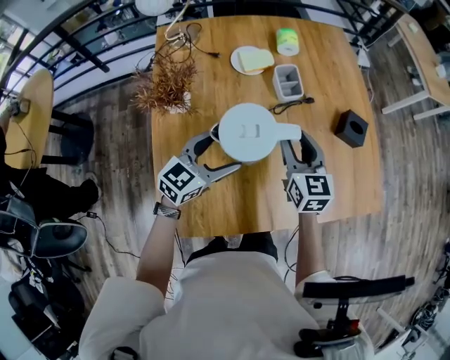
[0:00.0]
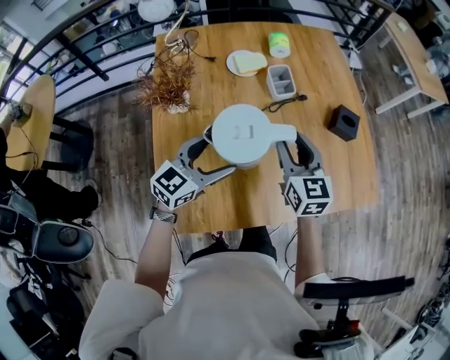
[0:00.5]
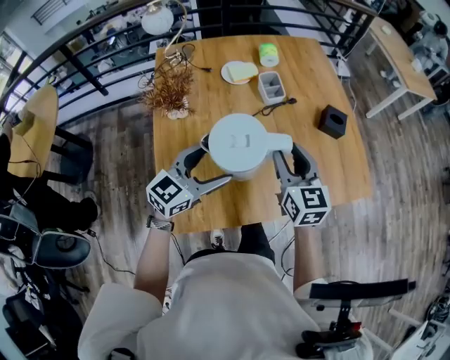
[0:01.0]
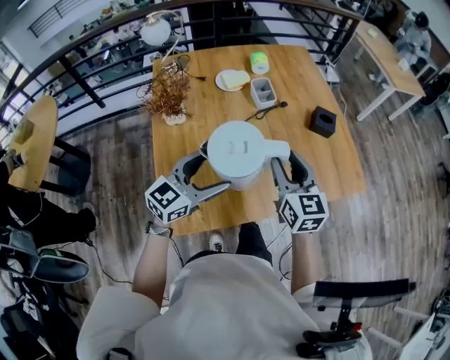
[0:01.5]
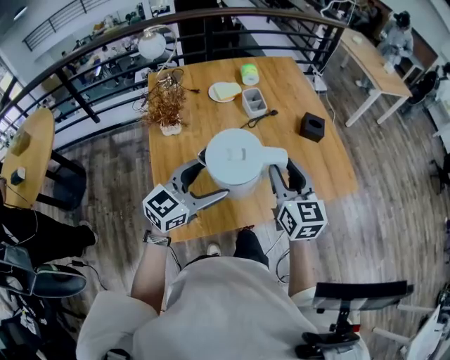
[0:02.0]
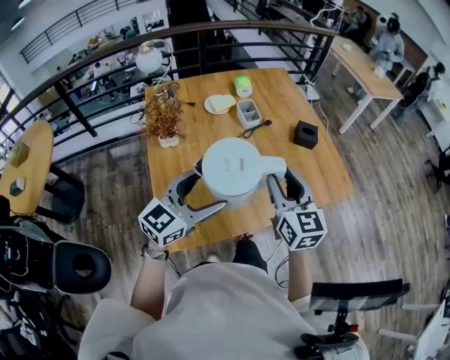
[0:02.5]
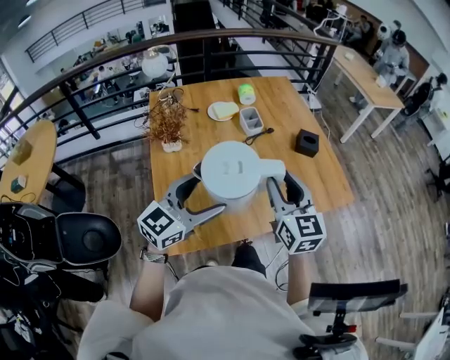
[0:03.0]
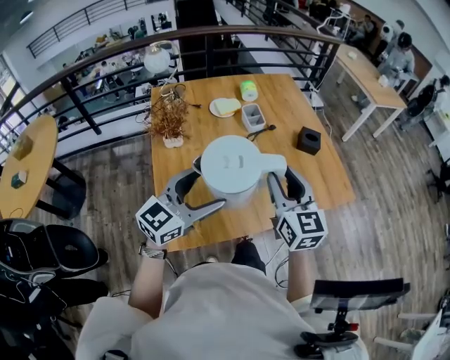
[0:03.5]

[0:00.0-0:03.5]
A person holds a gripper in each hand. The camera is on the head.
0:00.0 to 0:02.0: Both grippers move backward and upward, roughly 20 cm.
0:02.0 to 0:03.5: The left gripper moves some 5 cm; the right gripper changes place by some 5 cm.

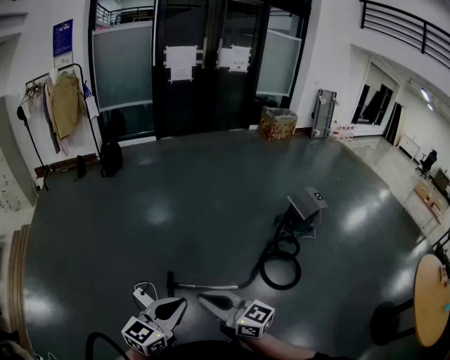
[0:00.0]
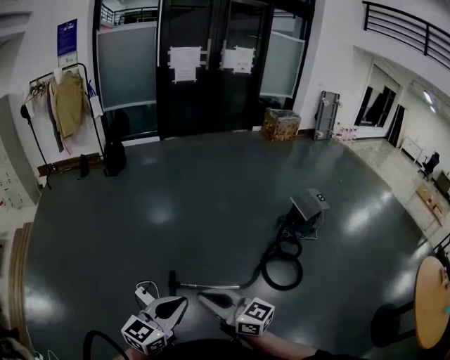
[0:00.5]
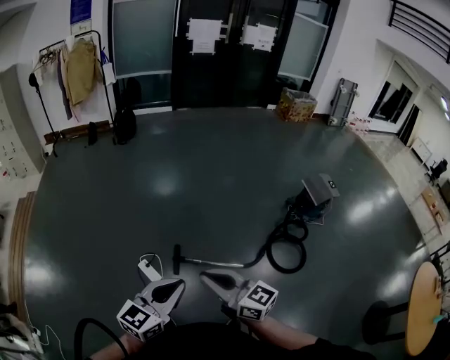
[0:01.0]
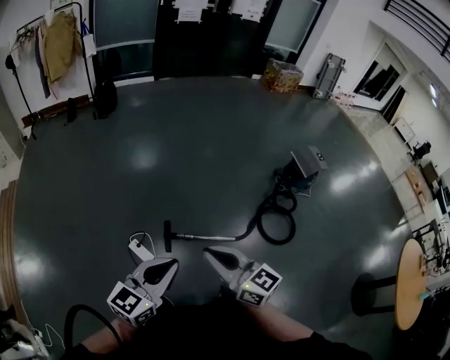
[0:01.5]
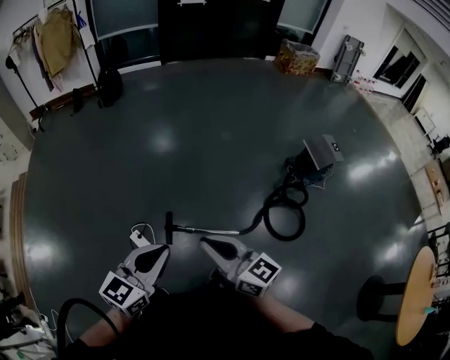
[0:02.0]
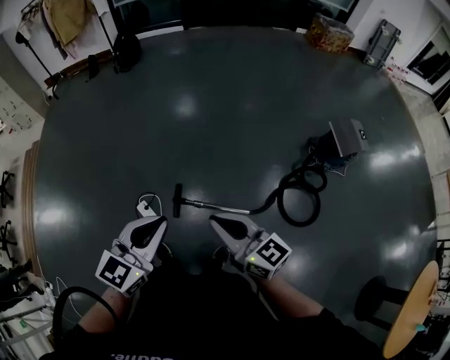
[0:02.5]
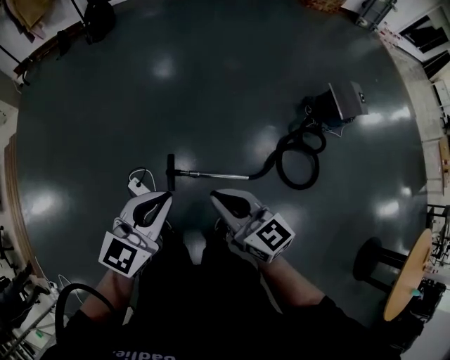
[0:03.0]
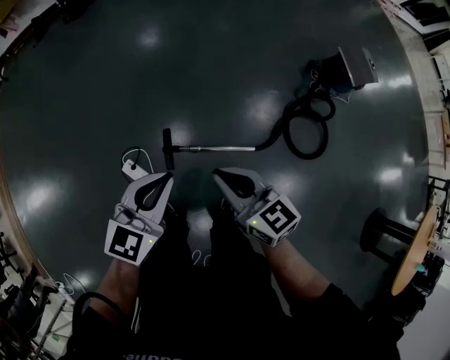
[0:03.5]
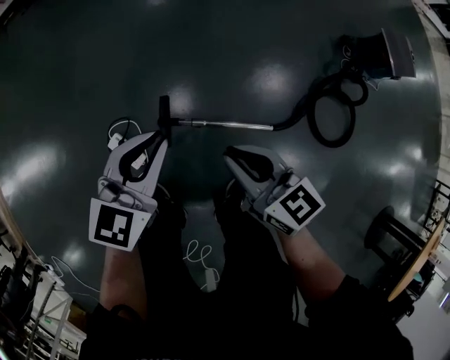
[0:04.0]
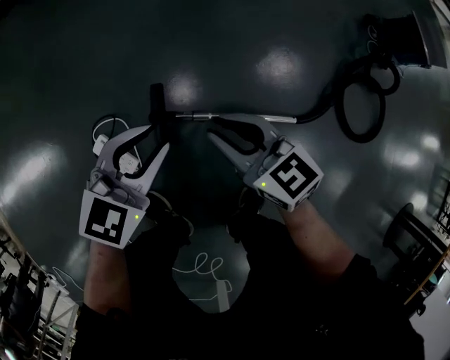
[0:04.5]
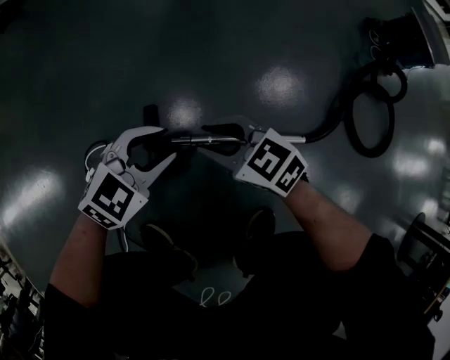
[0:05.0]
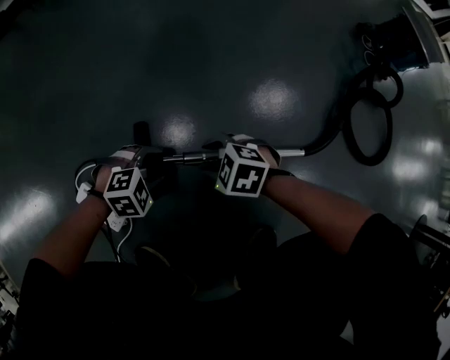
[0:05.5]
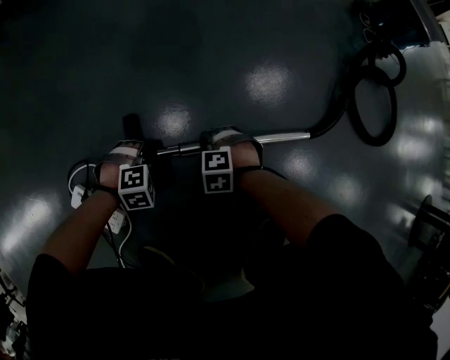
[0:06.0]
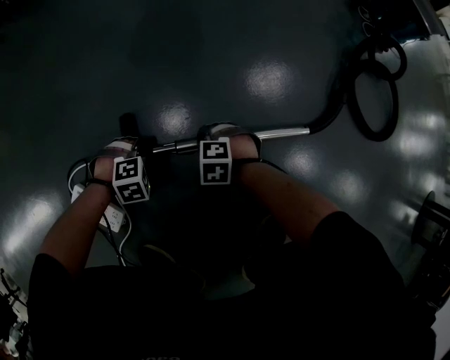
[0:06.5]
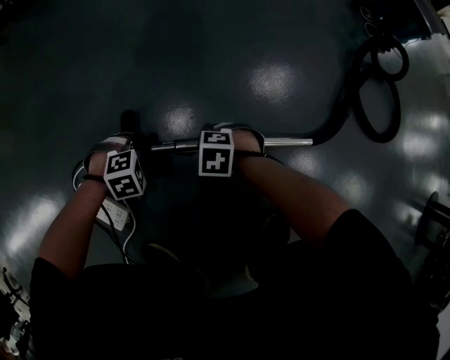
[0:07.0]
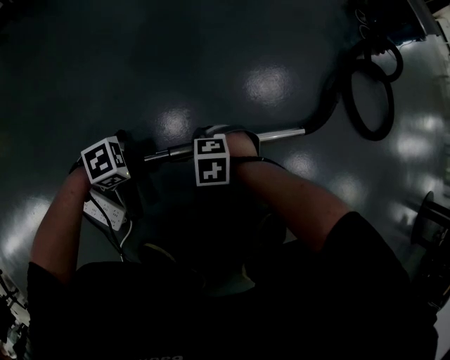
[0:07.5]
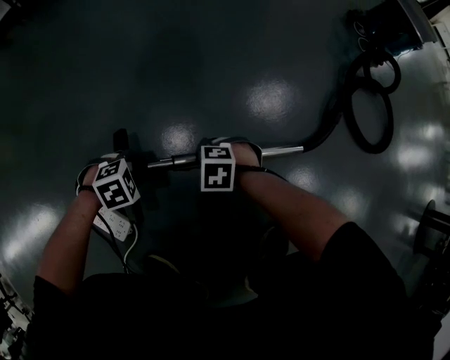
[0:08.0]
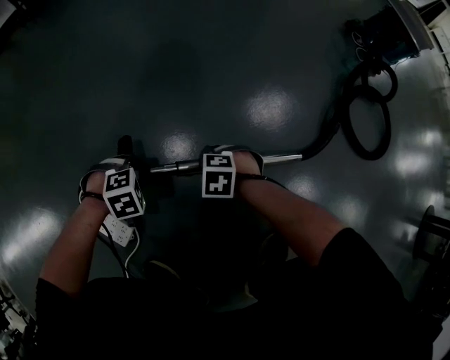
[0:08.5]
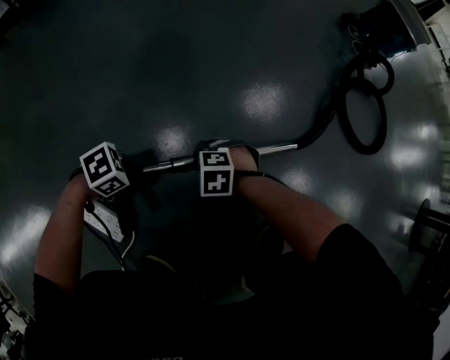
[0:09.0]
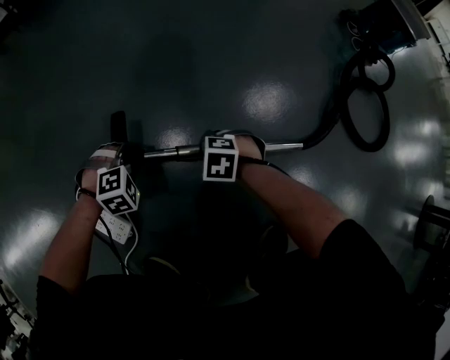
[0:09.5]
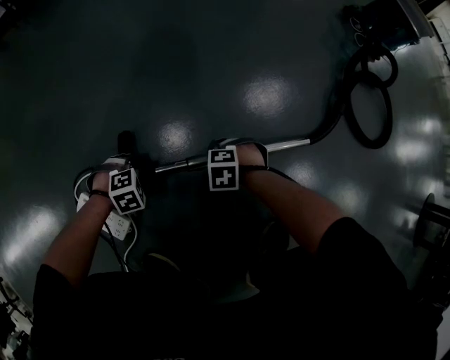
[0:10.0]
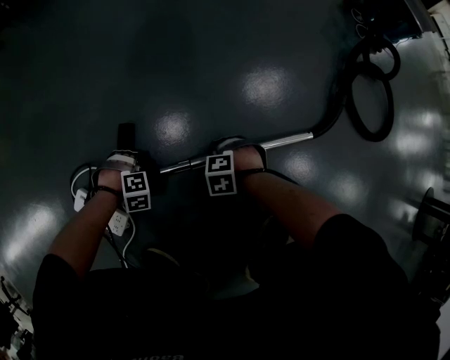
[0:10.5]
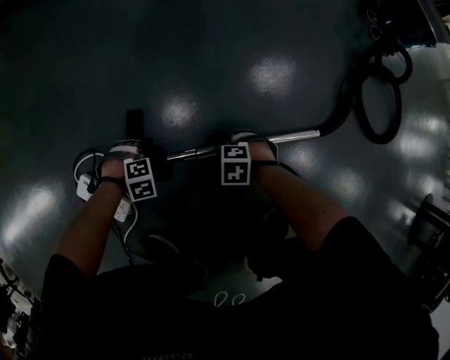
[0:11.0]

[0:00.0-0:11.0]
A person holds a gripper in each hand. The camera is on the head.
0:00.0 to 0:02.0: The two grippers go roughly 10 cm forward.
0:02.0 to 0:03.5: Both grippers move downward and forward, roughly 25 cm.
0:03.5 to 0:05.5: The two grippers go some 70 cm downward. The left gripper points its fingers some 50 degrees further downward, and opens its fingers. The right gripper tips its fingers downward by some 40 degrees, and opens its fingers.
0:05.5 to 0:07.5: The right gripper heads downward, covering some 10 cm; the left gripper changes its angle by roughly 30 degrees.
0:09.0 to 0:11.0: The left gripper is displaced downward by about 10 cm, tilts its fingers roughly 30 degrees downward, and opens up. Meanwhile the right gripper changes place by roughly 10 cm, and opens its fingers.

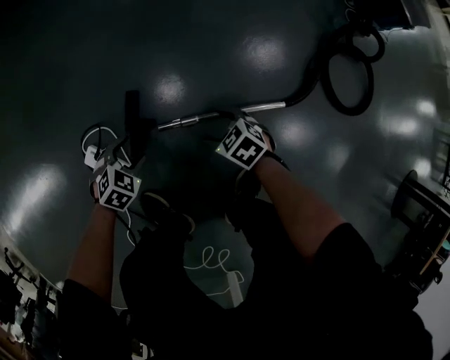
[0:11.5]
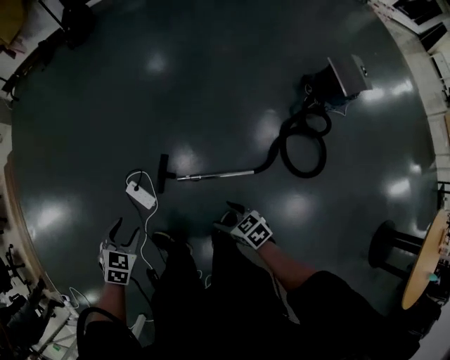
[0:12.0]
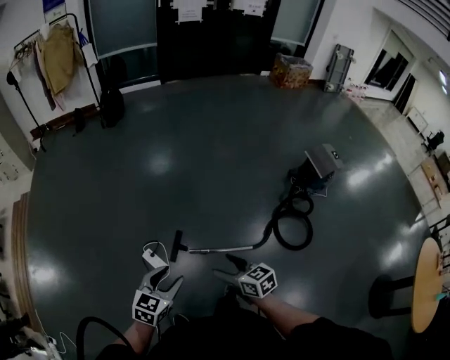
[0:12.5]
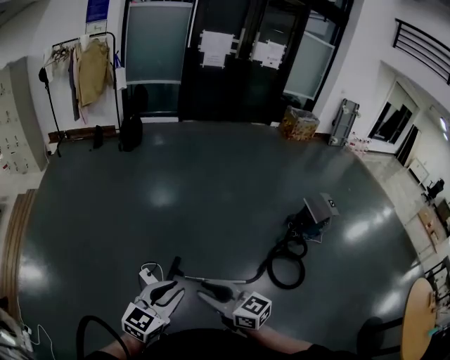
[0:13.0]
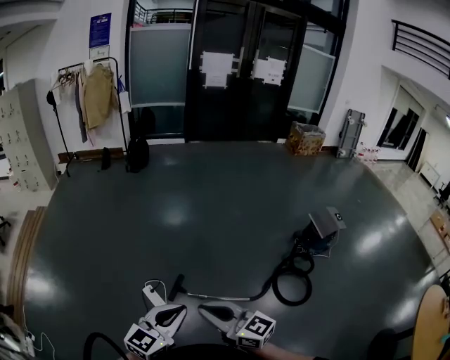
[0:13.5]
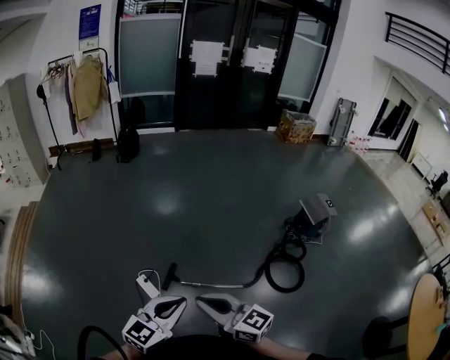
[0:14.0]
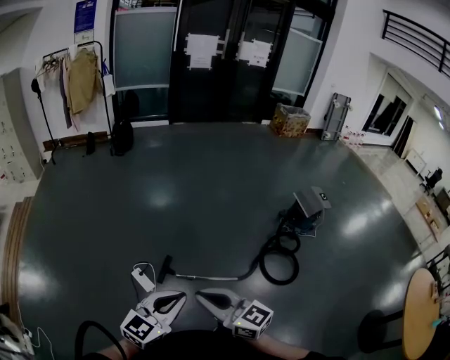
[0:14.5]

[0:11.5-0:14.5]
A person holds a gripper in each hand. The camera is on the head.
0:11.5 to 0:13.0: The two grippers go approximately 80 cm upward. The left gripper points its fingers about 60 degrees further upward, and closes up. Meanwhile the right gripper tips its fingers upward by about 50 degrees, and closes its fingers.
0:13.0 to 0:14.5: The right gripper shifts some 10 cm backward and to the right, and closes; the left gripper goes approximately 10 cm to the right and backward.

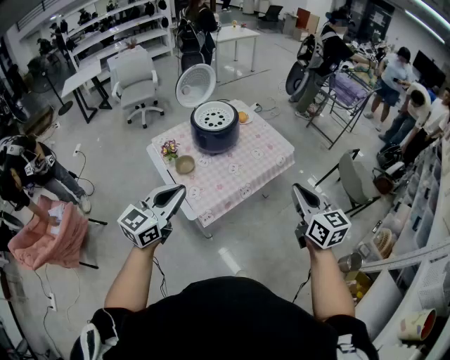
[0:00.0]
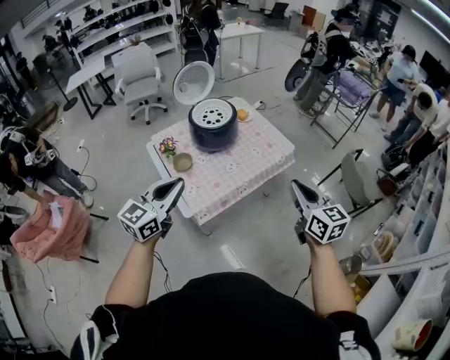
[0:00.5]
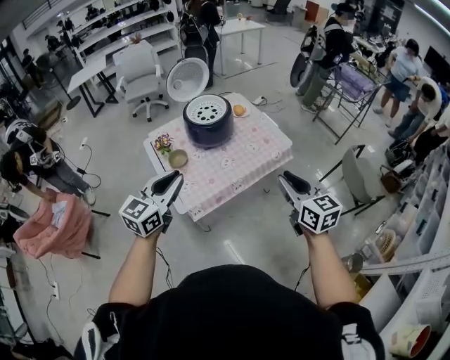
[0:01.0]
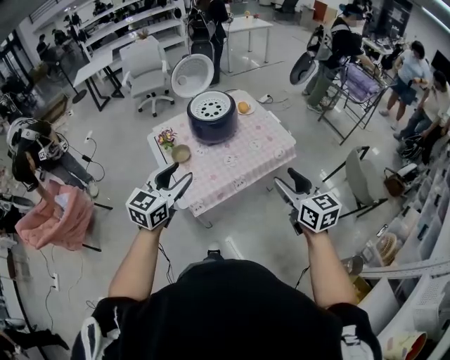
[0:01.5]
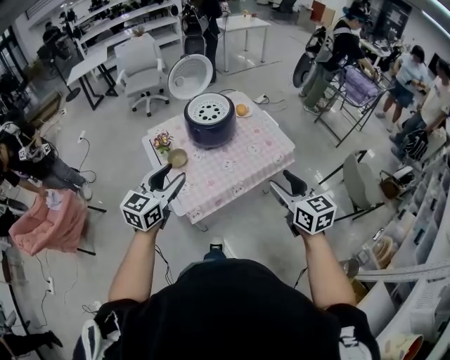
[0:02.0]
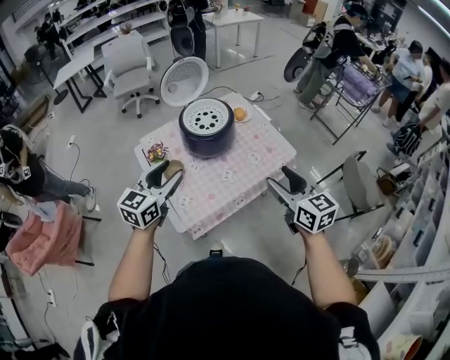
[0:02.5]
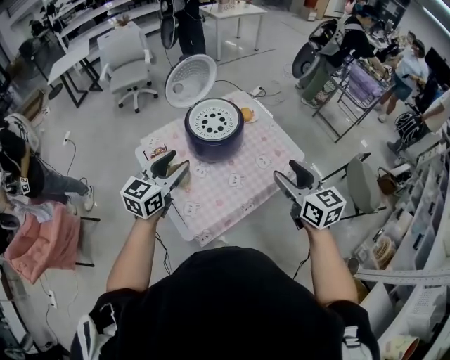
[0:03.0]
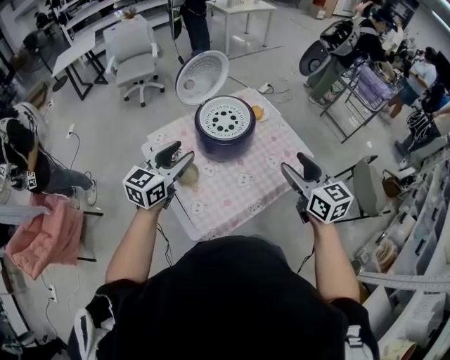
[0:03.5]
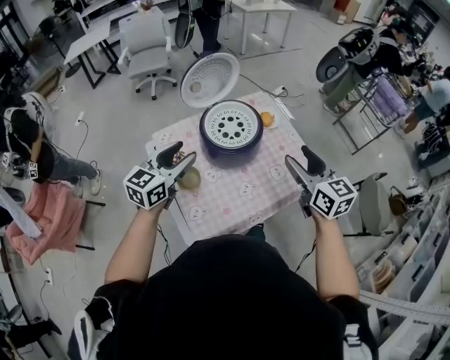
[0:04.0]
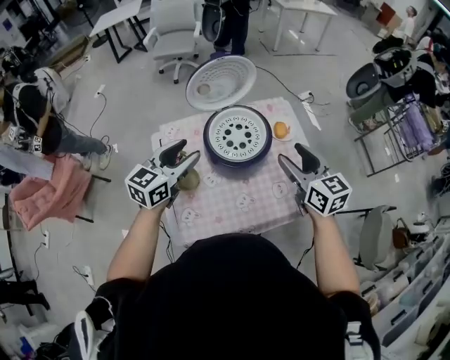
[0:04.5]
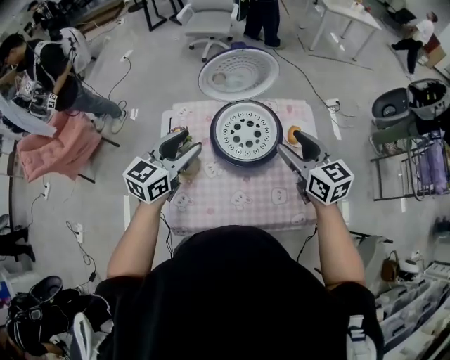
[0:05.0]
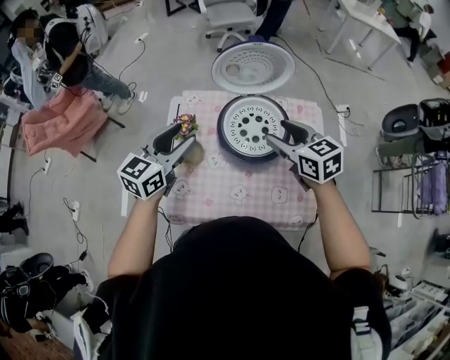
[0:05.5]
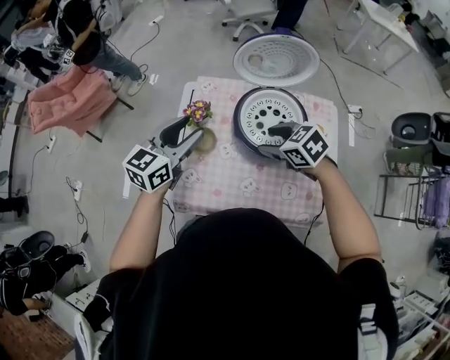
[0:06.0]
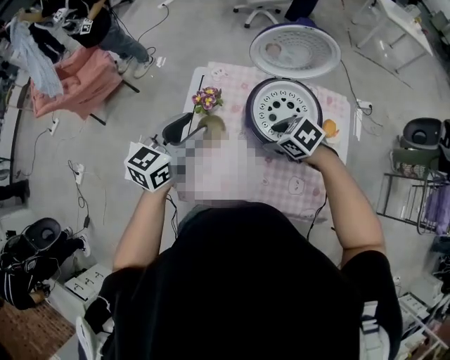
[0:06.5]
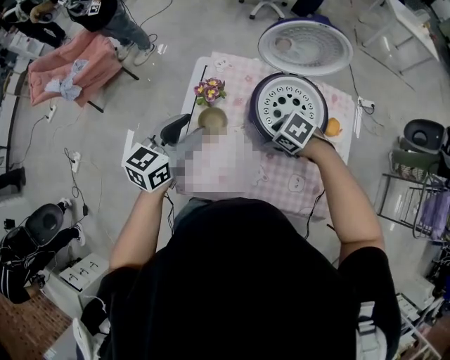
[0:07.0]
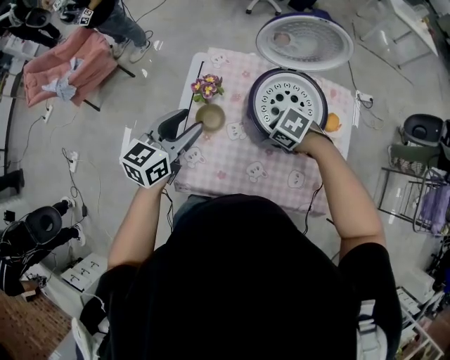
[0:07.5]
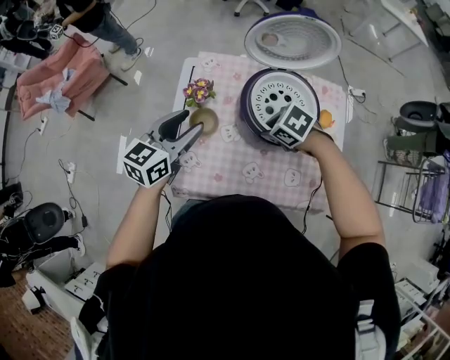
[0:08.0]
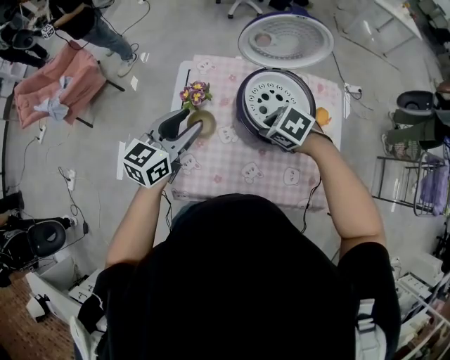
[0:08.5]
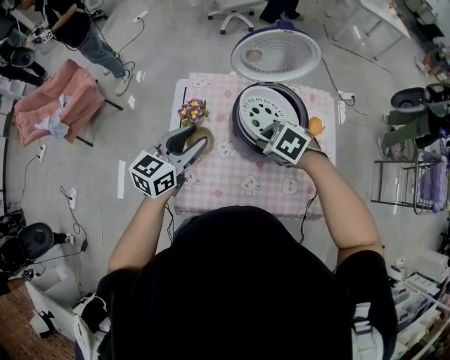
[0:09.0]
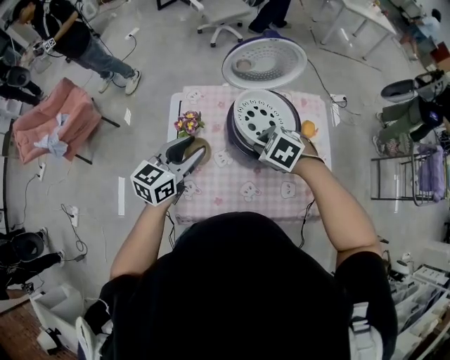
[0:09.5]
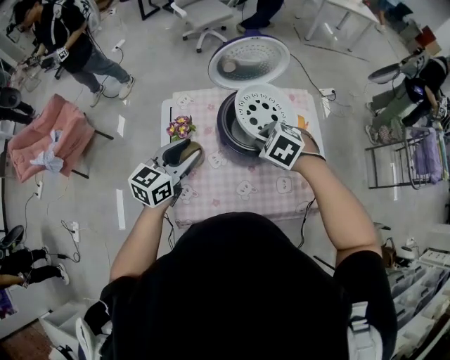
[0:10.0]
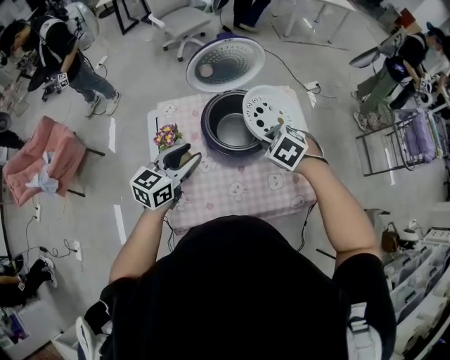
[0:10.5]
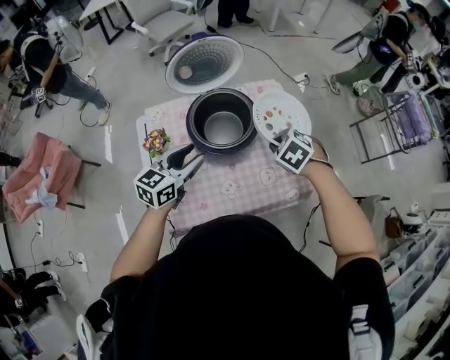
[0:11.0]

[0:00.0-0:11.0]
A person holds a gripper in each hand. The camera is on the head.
0:00.0 to 0:02.0: The grippers both shift forward by roughly 10 cm. The right gripper opens up; the left gripper opens.
0:02.0 to 0:03.5: The right gripper is displaced forward and to the left by roughly 20 cm, while the left gripper moves forward, roughly 20 cm.
0:03.5 to 0:05.5: The left gripper changes place by about 10 cm, and swivels some 40 degrees; the right gripper changes place by some 30 cm, and changes its angle by roughly 50 degrees.
0:05.5 to 0:07.5: The left gripper heads downward, covering about 10 cm. The right gripper travels downward by roughly 20 cm, and tilts its fingers about 40 degrees downward.
0:07.5 to 0:09.0: The right gripper moves upward, approximately 5 cm, and closes up.
0:09.0 to 0:11.0: The right gripper shifts by roughly 20 cm, and turns by roughly 30 degrees, while the left gripper moves about 10 cm.
